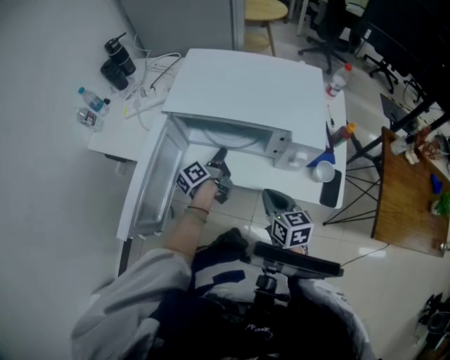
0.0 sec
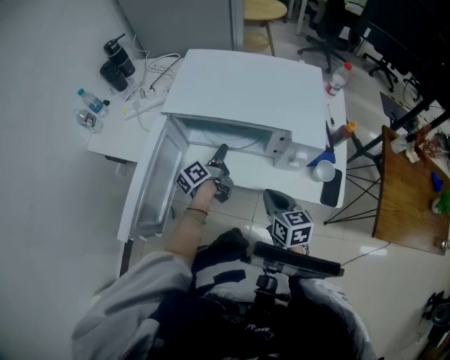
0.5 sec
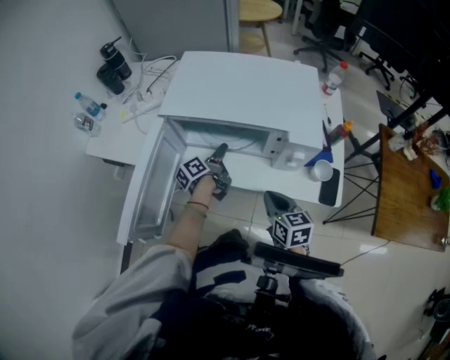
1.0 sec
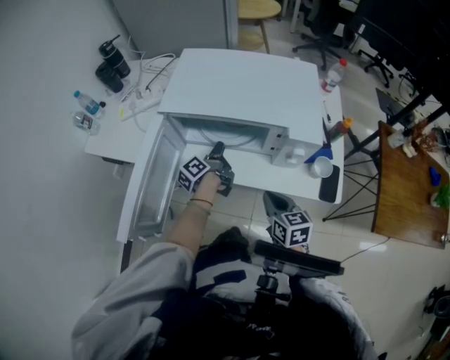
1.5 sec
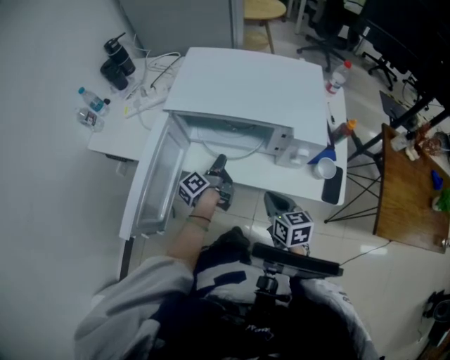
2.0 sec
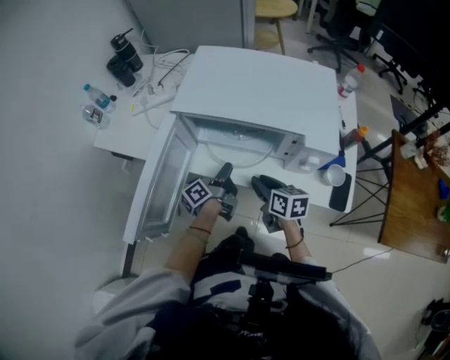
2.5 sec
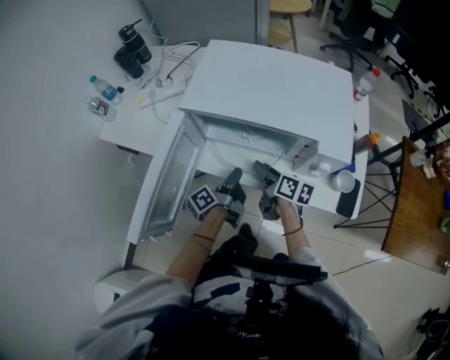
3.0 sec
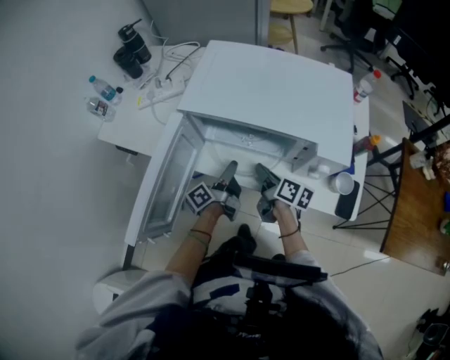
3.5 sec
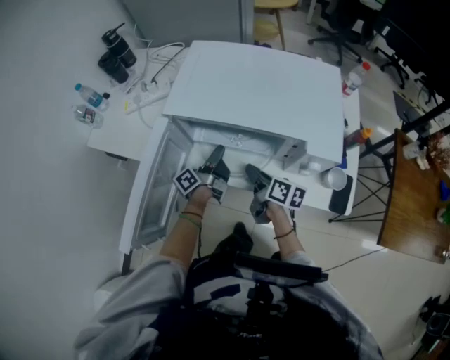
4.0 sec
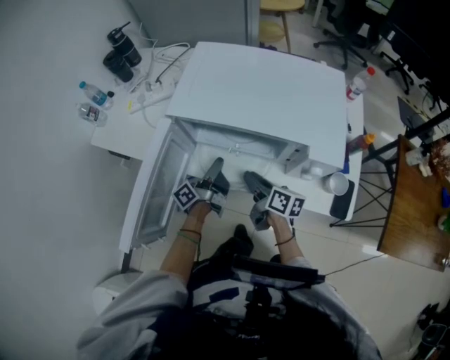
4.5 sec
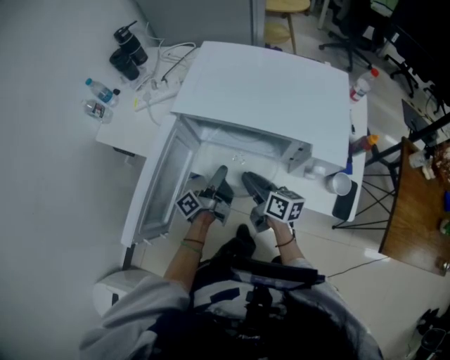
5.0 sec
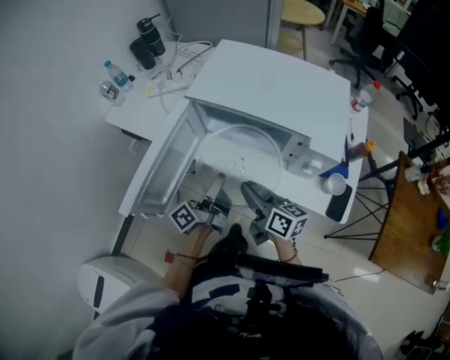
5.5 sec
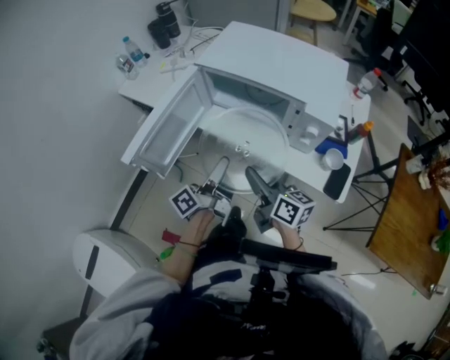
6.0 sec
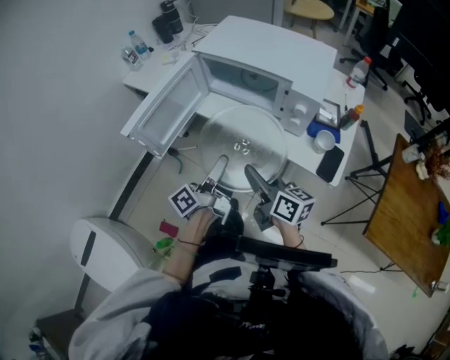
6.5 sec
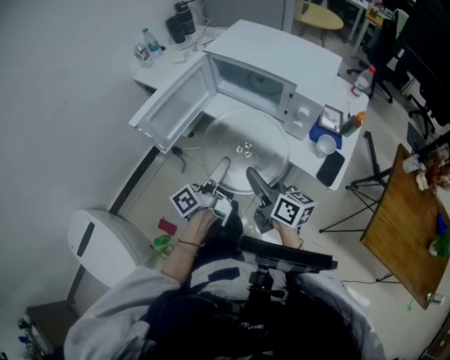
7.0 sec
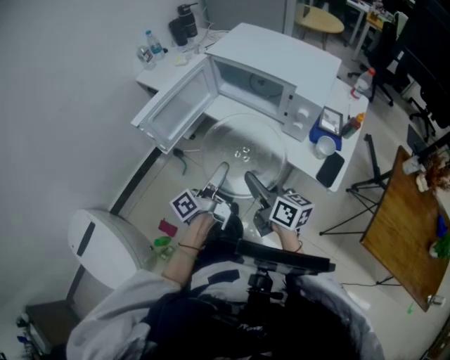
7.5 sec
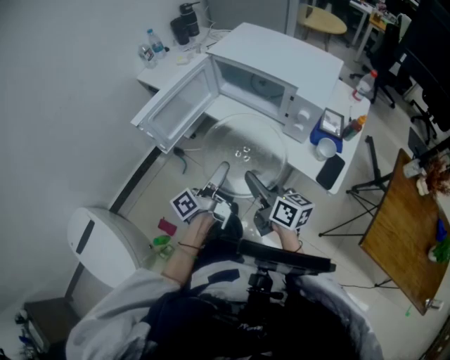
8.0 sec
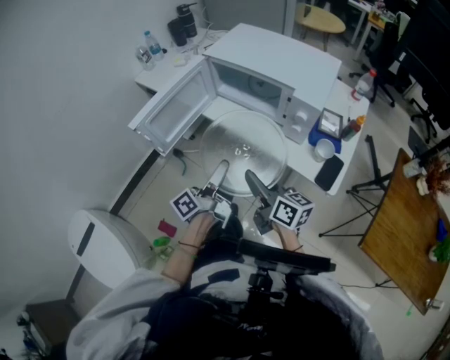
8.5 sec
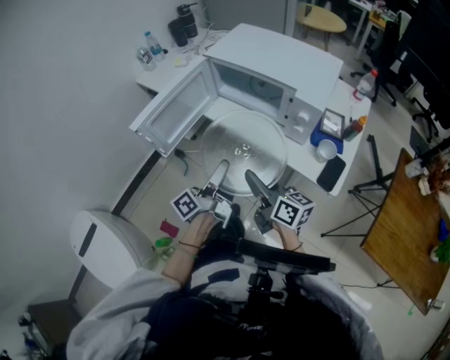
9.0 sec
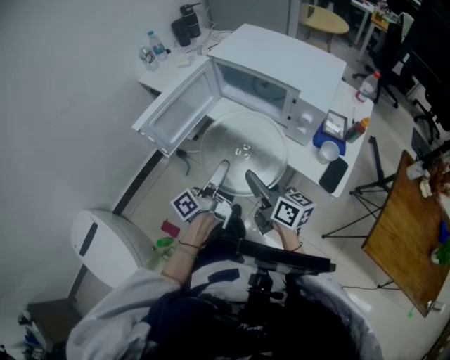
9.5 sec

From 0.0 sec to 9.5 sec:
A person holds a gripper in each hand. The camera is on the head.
From 2.0 sec to 4.0 sec: The right gripper shifts by some 15 cm, swivels approximately 40 degrees, and opens, then closes once more.
From 4.0 sec to 5.5 sec: The right gripper moves roughly 15 cm, and changes its angle by some 20 degrees.
From 5.5 sec to 7.5 sec: The right gripper shifts by approximately 20 cm.

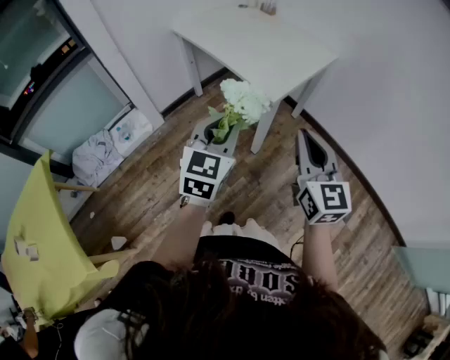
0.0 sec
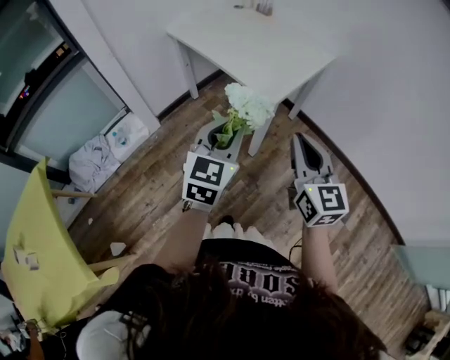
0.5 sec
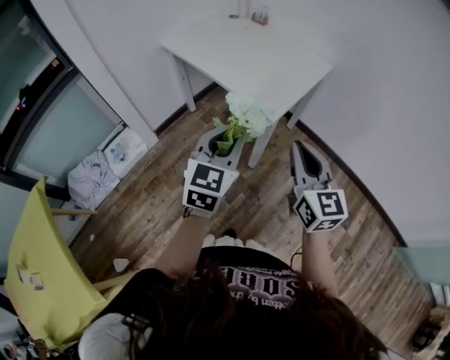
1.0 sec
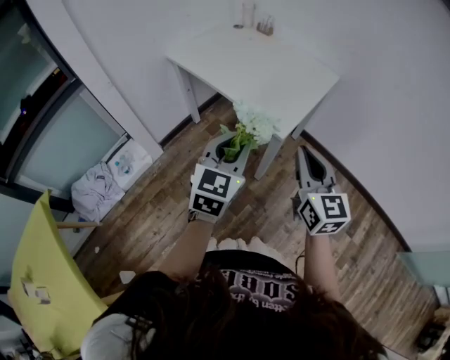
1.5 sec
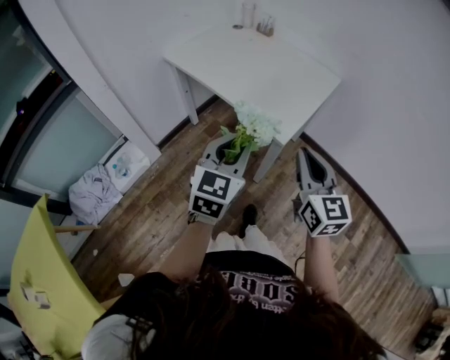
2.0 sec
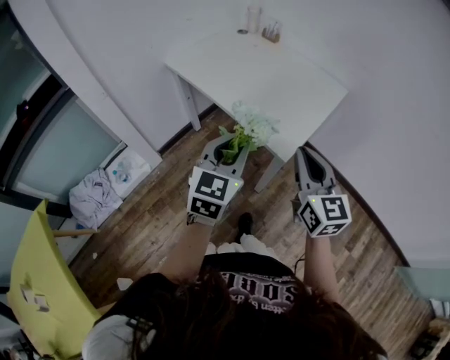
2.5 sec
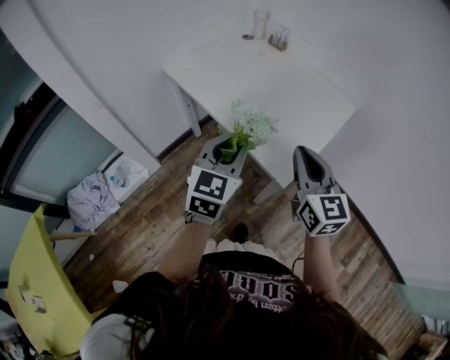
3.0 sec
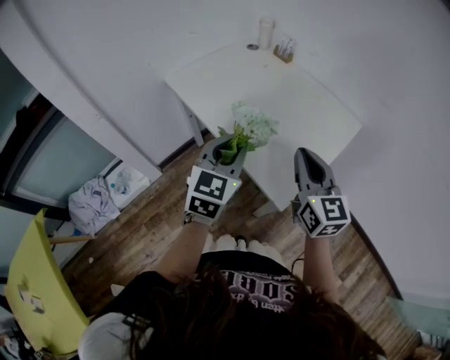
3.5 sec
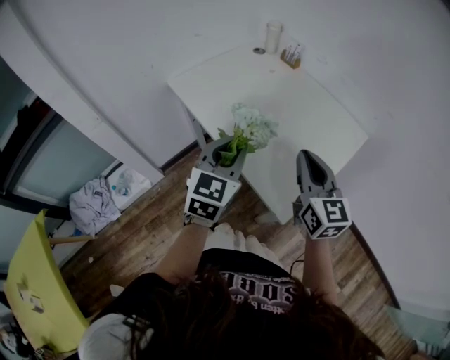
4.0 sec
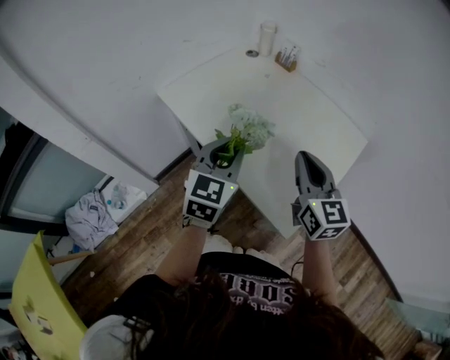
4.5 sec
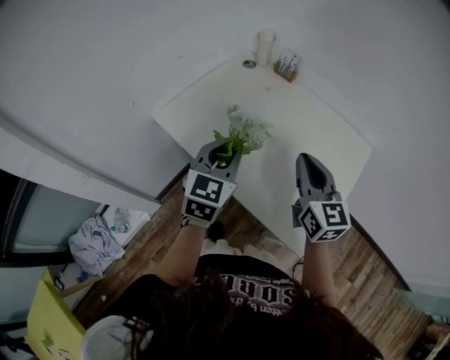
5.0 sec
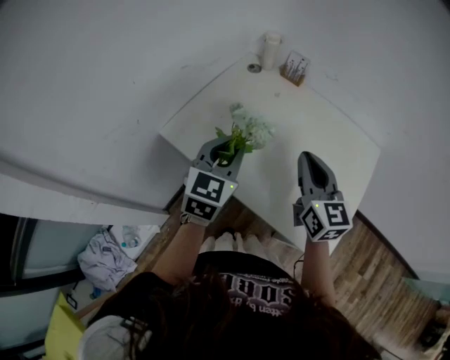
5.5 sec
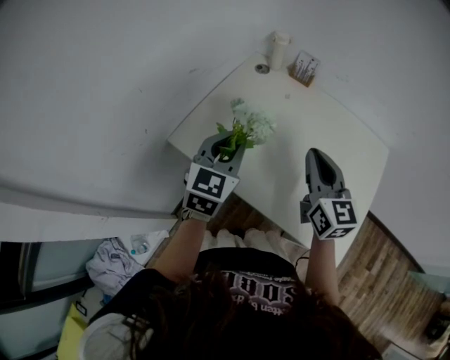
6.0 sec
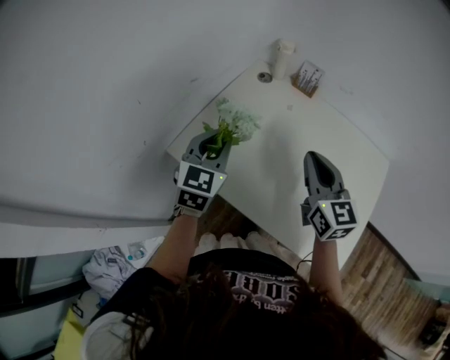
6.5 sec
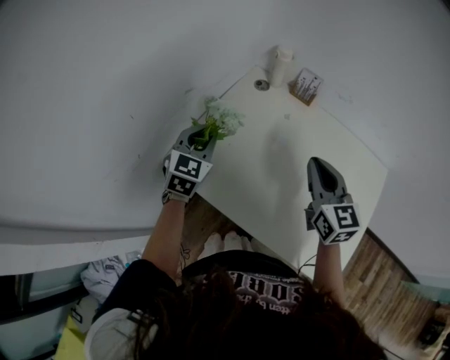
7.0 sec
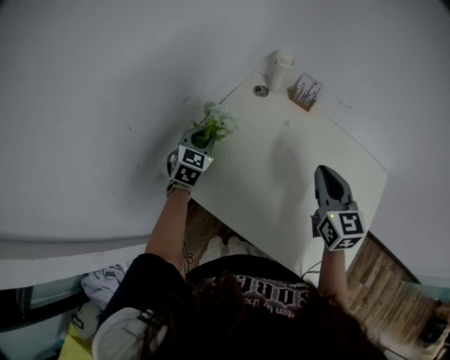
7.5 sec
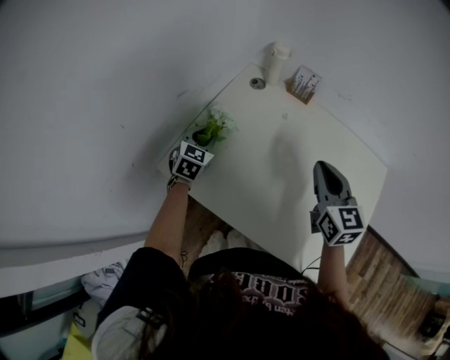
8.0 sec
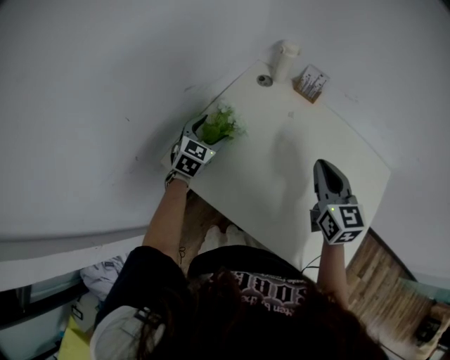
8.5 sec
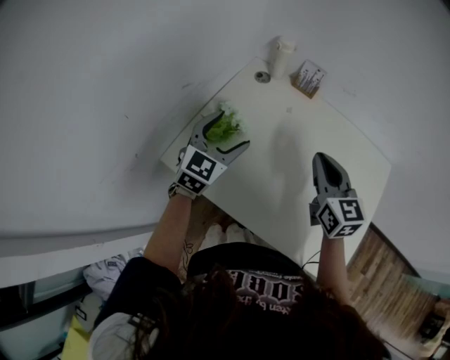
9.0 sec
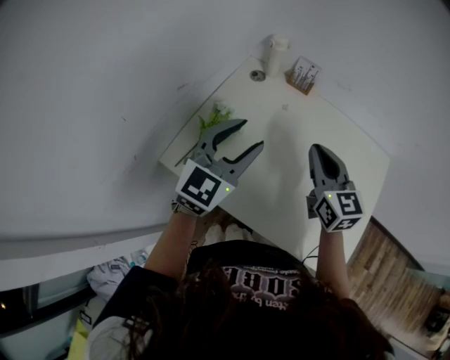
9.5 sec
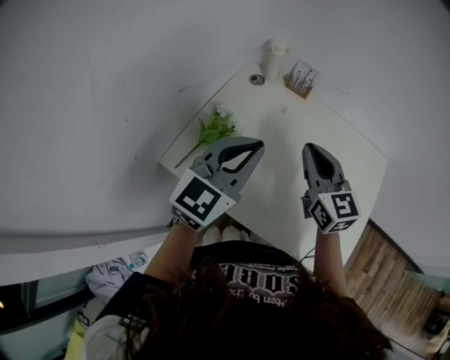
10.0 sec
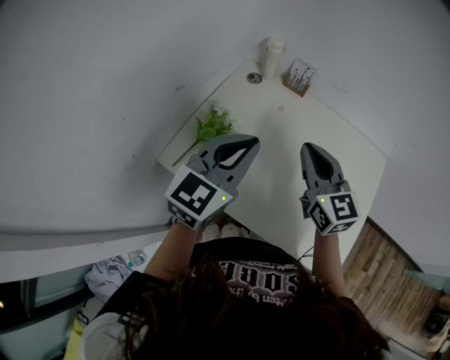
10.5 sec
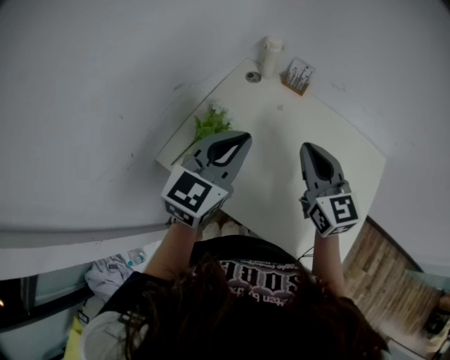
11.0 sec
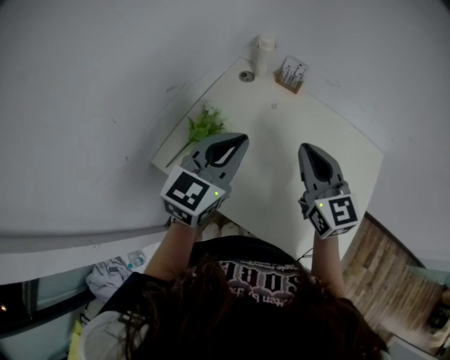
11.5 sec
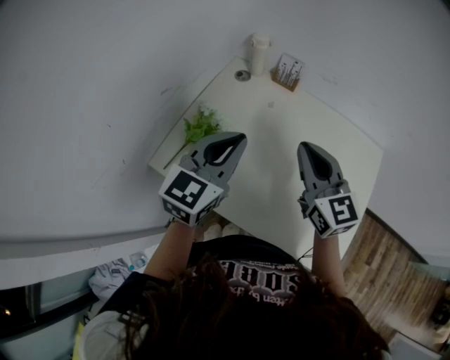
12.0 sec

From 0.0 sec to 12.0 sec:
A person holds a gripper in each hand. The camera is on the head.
From 0.0 sec to 2.0 sec: The right gripper moves forward and to the left, approximately 15 cm. The left gripper moves forward, some 10 cm.
From 2.0 sec to 4.0 sec: Both grippers travel together forward, roughly 25 cm.
From 4.0 sec to 6.0 sec: The grippers both shift forward and to the left by roughly 25 cm.
From 6.0 sec to 8.0 sec: The left gripper heads forward, downward and to the left, covering some 25 cm; the right gripper goes approximately 10 cm forward.
From 8.0 sec to 10.0 sec: The right gripper moves approximately 5 cm. The left gripper goes about 30 cm upward, to the right and backward, rotates roughly 30 degrees, and opens and closes again.
From 10.0 sec to 12.0 sec: There are only small adjustments of the grippers.

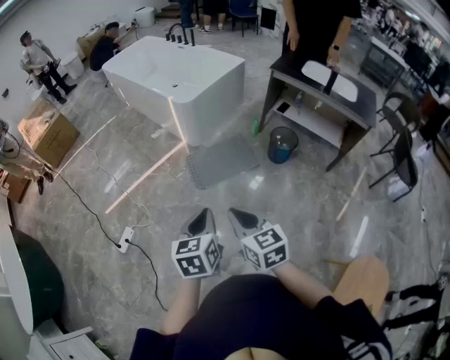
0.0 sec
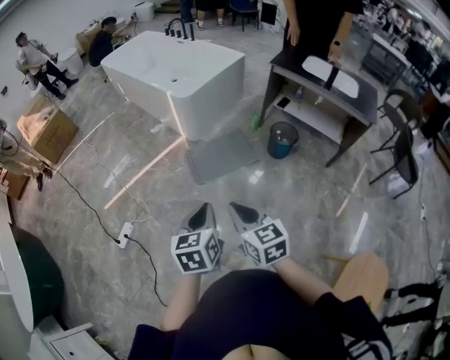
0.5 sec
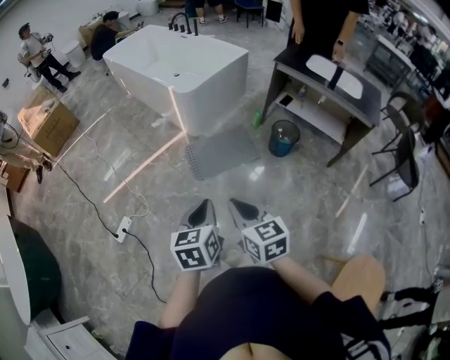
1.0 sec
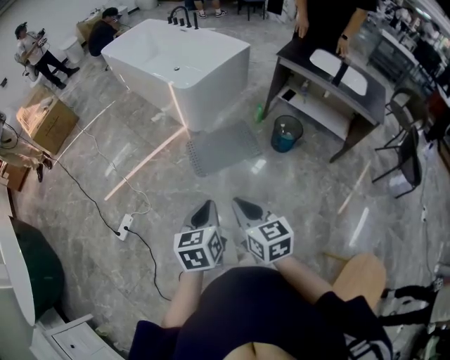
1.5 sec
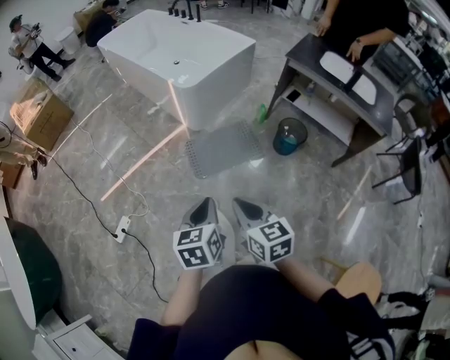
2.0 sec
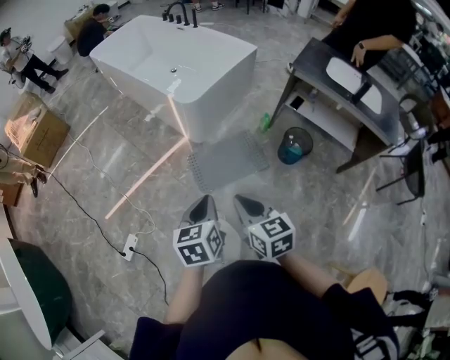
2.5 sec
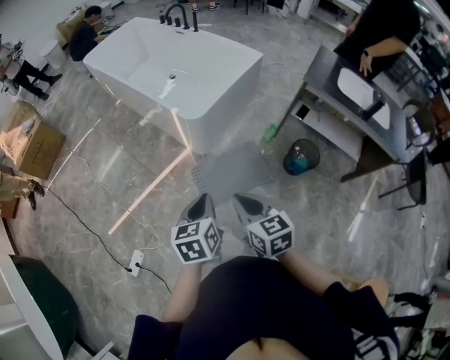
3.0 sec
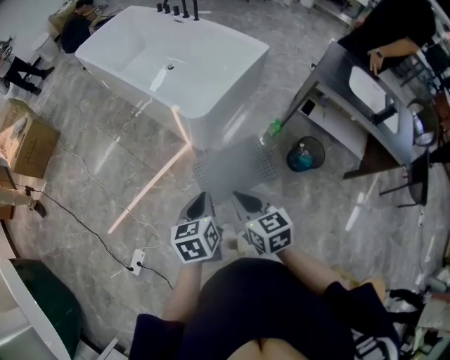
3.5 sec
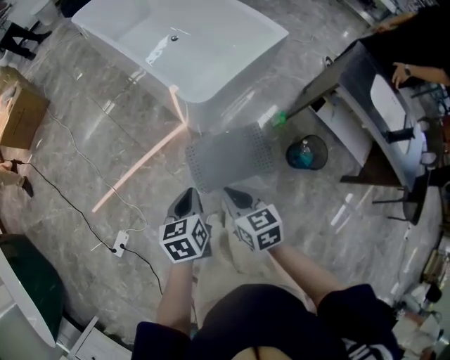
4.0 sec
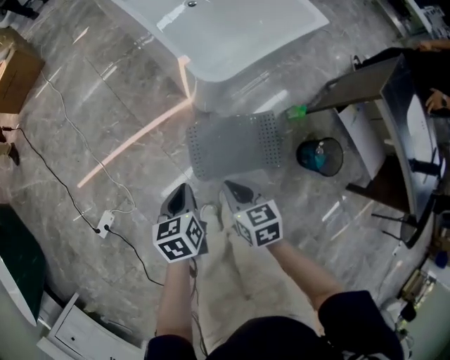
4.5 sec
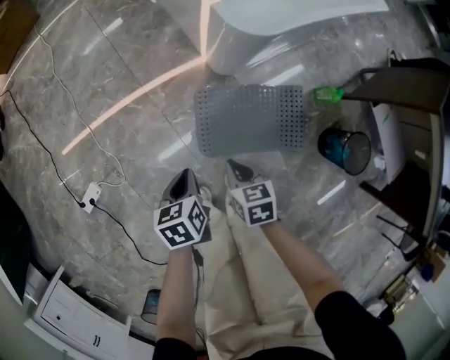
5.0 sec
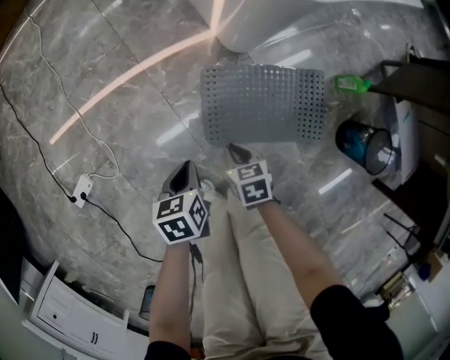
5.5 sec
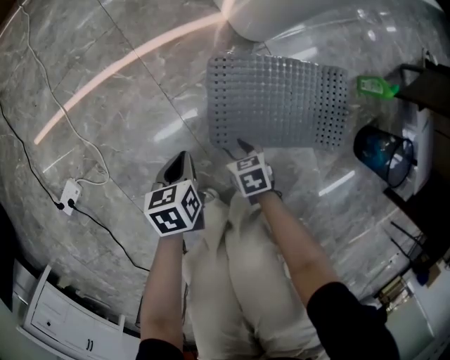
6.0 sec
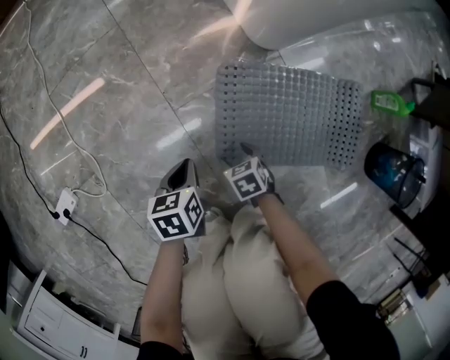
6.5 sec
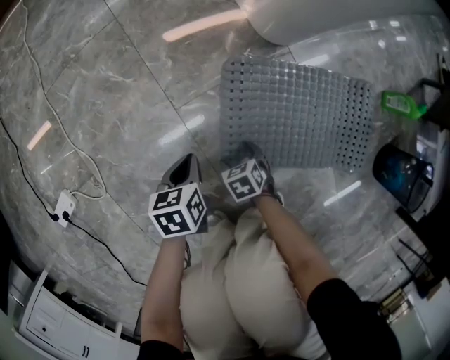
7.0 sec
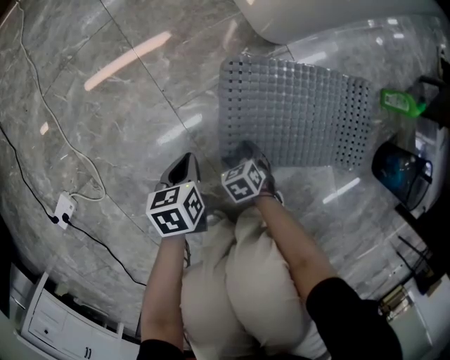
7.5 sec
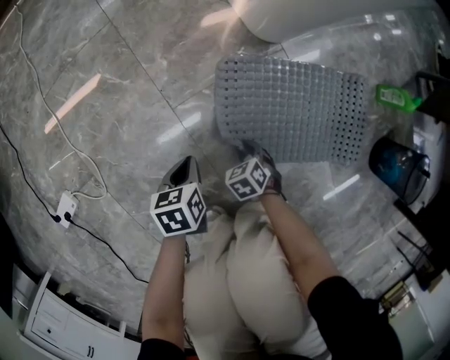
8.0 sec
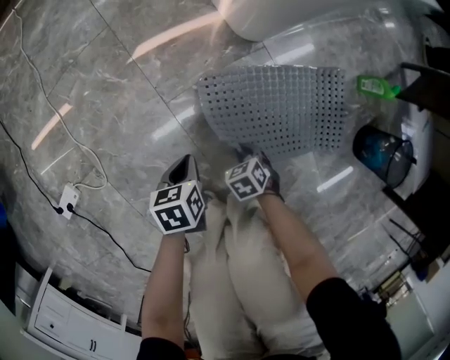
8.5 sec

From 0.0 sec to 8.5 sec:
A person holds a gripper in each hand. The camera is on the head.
From 0.0 sec to 2.0 sec: The grippers both shift forward by approximately 15 cm.
From 2.0 sec to 4.0 sec: The two grippers travel together, forward, approximately 40 cm.
From 4.0 sec to 6.5 sec: The two grippers go approximately 80 cm downward. The right gripper rotates some 40 degrees, and opens up. The left gripper changes its angle by some 20 degrees.
From 6.5 sec to 8.5 sec: The left gripper shifts by about 5 cm. The right gripper travels upward by roughly 5 cm, and closes its fingers.
